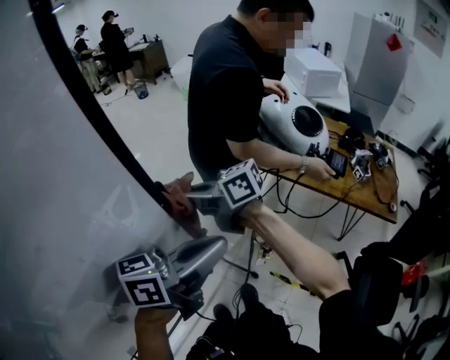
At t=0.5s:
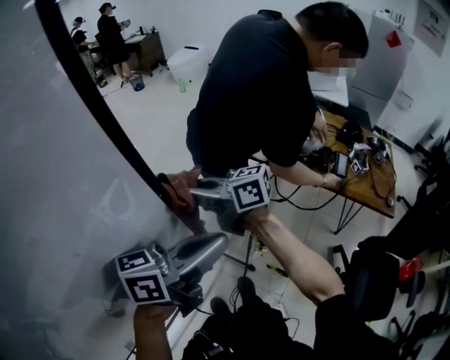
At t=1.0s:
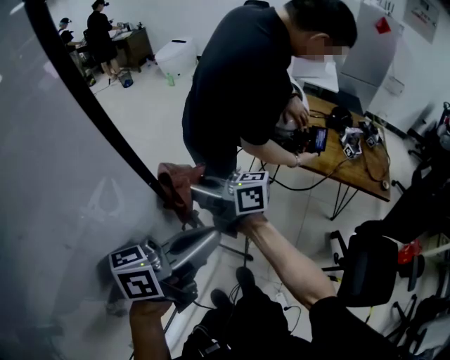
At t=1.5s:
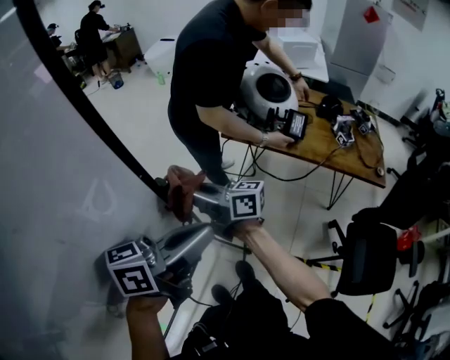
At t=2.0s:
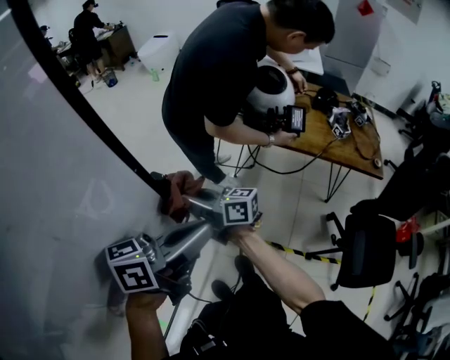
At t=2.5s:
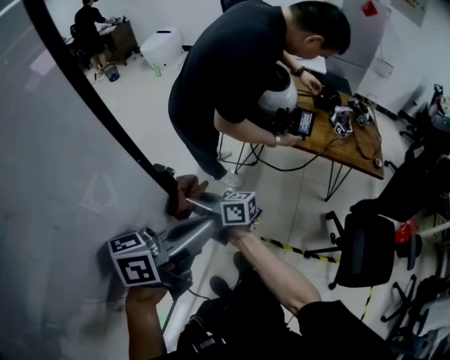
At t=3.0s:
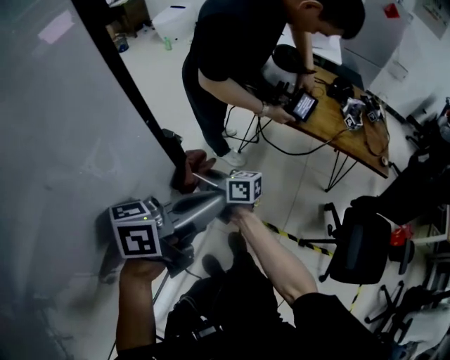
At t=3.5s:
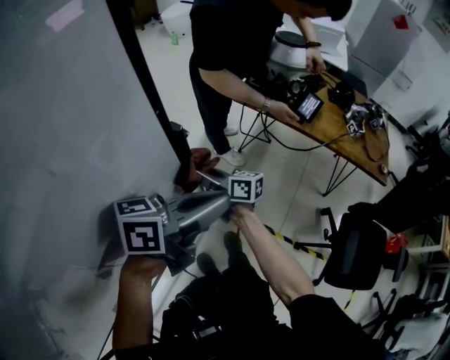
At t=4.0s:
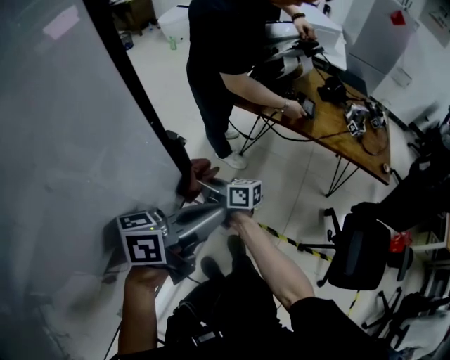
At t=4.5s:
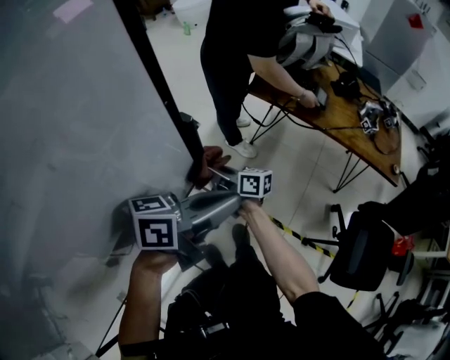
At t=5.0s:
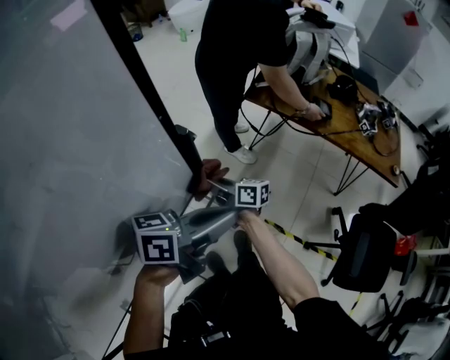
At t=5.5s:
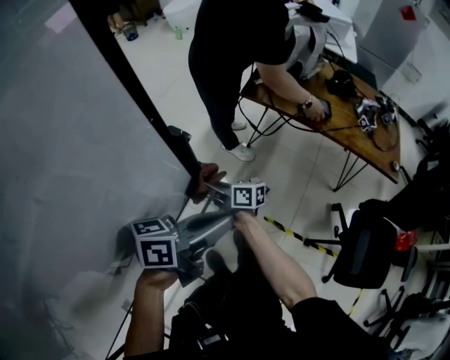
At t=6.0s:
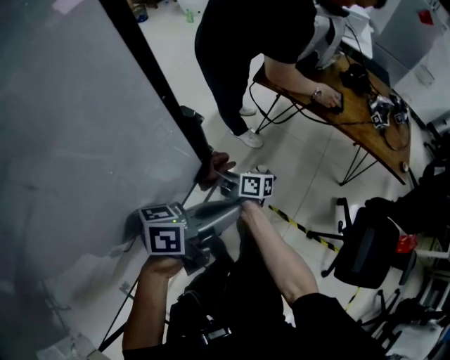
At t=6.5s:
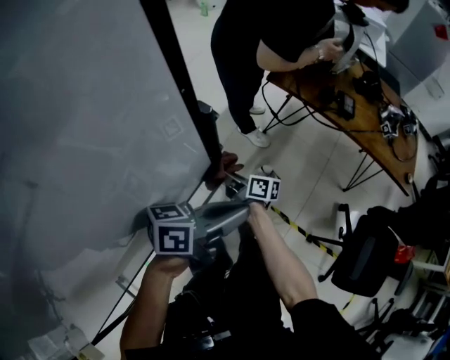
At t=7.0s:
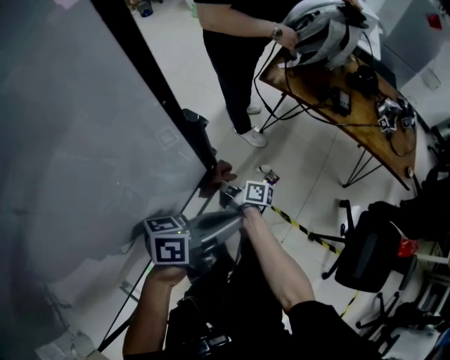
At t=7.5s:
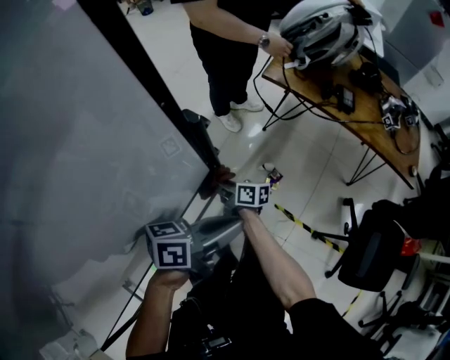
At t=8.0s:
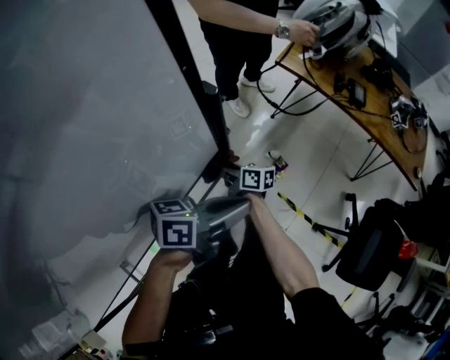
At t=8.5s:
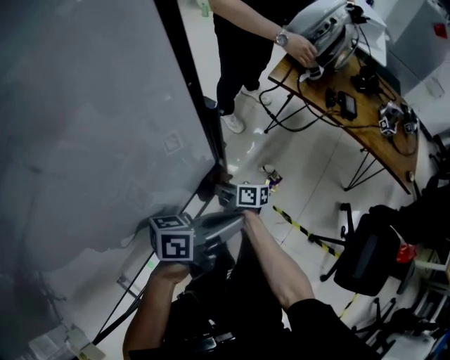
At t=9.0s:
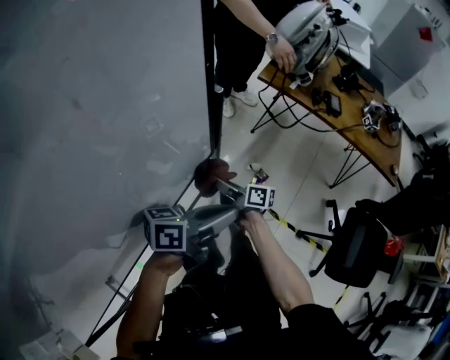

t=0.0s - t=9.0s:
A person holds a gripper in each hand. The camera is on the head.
t=0.0s - t=2.0s: The left gripper goes about 5 cm downward; the right gripper heads downward, covering approximately 15 cm, and changes its angle by roughly 30 degrees.
t=2.0s - t=4.5s: The left gripper travels downward by about 5 cm; the right gripper is displaced downward by about 15 cm.
t=4.5s - t=7.0s: The two grippers go roughly 10 cm downward. The right gripper swivels approximately 30 degrees.
t=7.0s - t=9.0s: The right gripper is displaced backward and upward by roughly 10 cm; the left gripper is displaced backward by roughly 5 cm.

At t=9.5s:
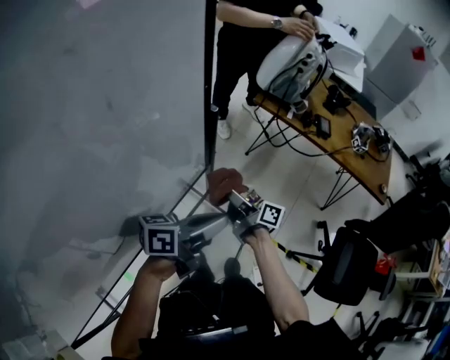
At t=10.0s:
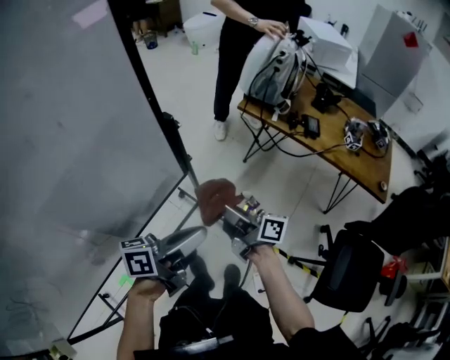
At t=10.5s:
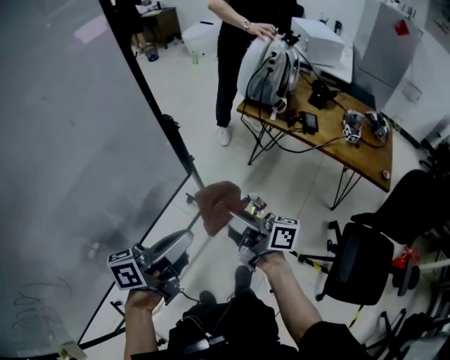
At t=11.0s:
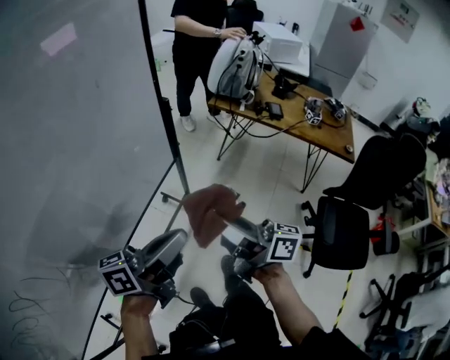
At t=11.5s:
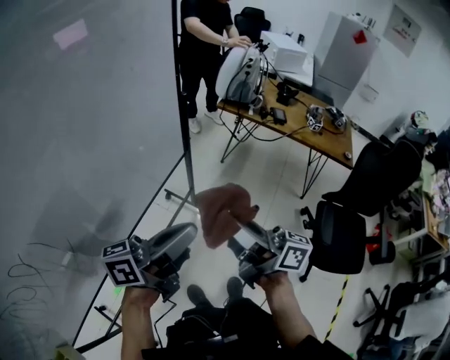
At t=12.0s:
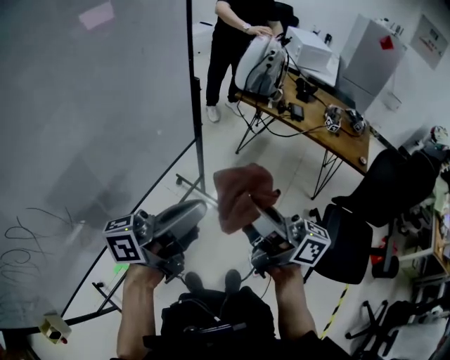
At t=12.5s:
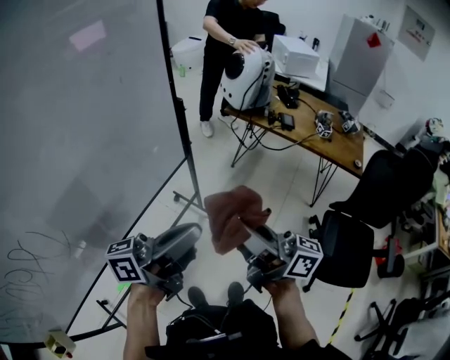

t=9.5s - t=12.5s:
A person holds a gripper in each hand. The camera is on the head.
t=9.5s - t=11.0s: The right gripper moves backward and upward, about 35 cm, and swivels about 20 degrees, while the left gripper goes some 25 cm backward and upward.
t=11.0s - t=12.5s: The right gripper moves to the right, backward and upward, some 10 cm. Meanwhile the left gripper is displaced to the right, upward and backward by approximately 10 cm.

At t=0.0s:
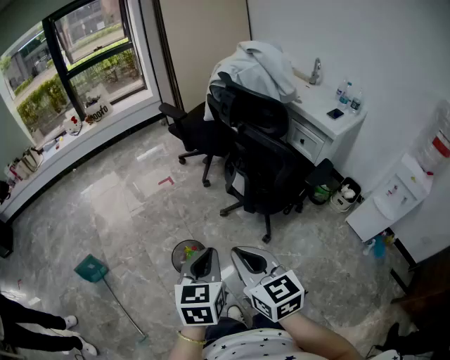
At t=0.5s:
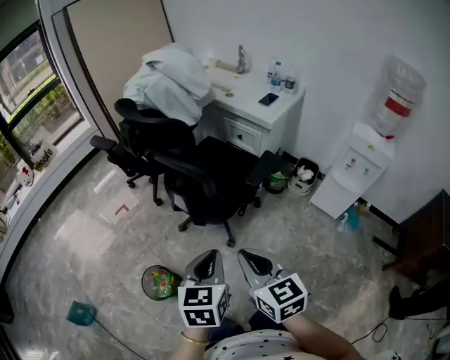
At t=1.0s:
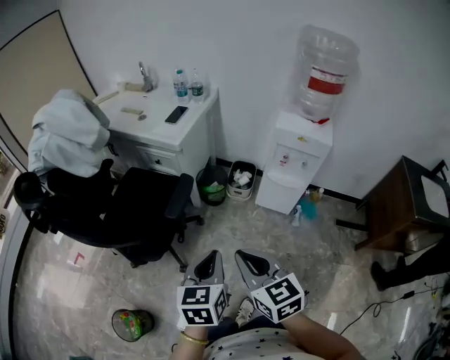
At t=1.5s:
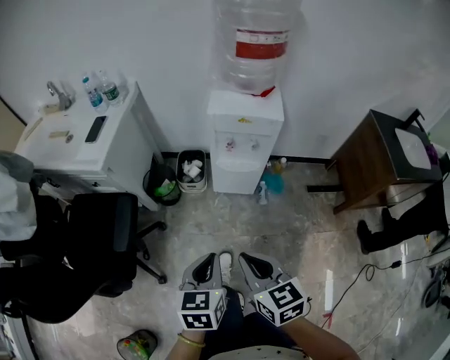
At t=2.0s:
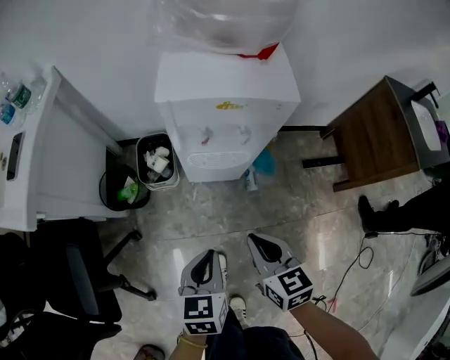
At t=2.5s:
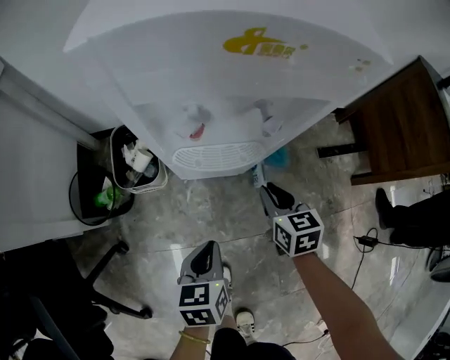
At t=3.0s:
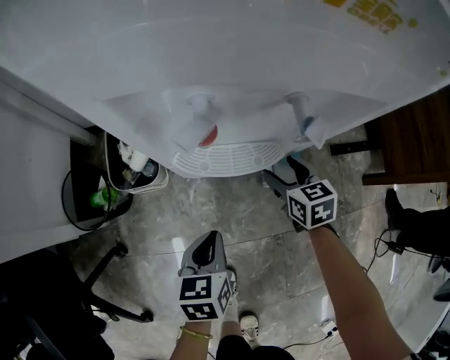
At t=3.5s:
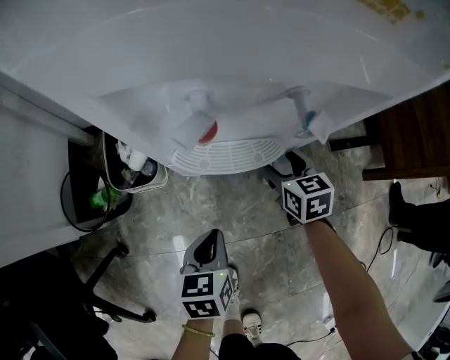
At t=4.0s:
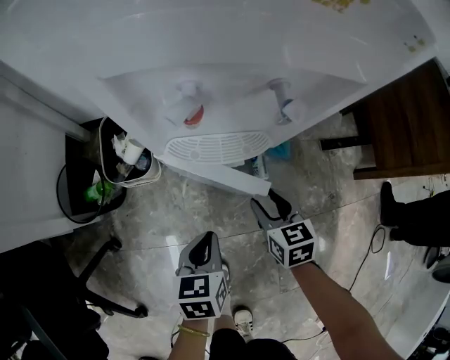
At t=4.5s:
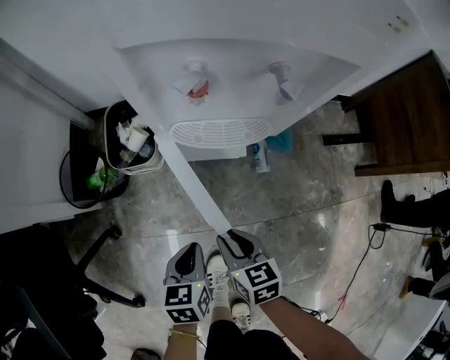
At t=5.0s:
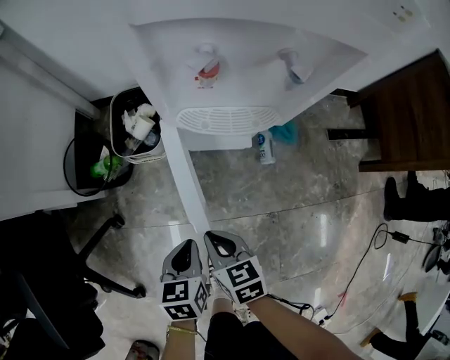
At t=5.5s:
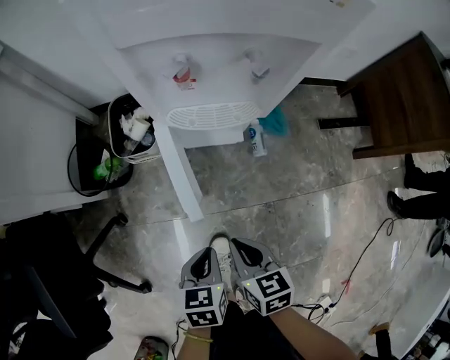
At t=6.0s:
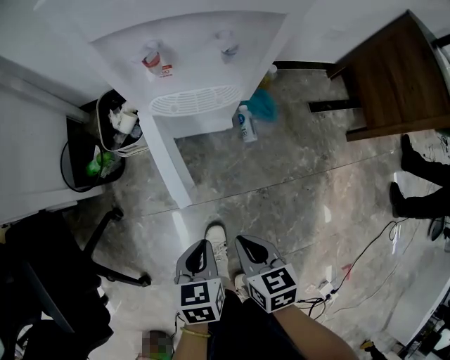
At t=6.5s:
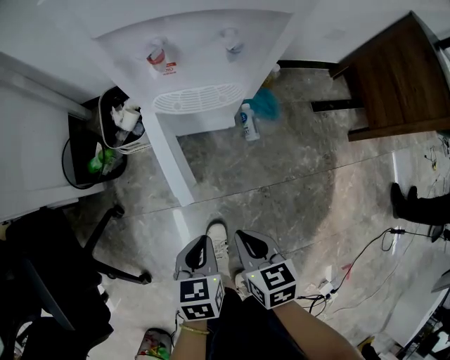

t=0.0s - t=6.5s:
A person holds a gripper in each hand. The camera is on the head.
t=0.0s - t=2.0s: Both grippers are carried roughly 90 cm. The left gripper turns by roughly 60 degrees, while the right gripper turns by approximately 70 degrees.
t=2.0s - t=4.5s: Both grippers move downward, roughly 30 cm. The right gripper opens, then closes again.
t=4.5s - t=6.5s: Both grippers move backward and upward, some 10 cm.

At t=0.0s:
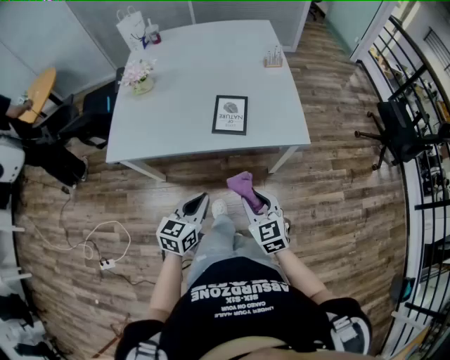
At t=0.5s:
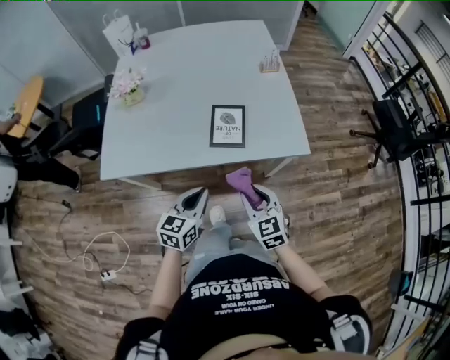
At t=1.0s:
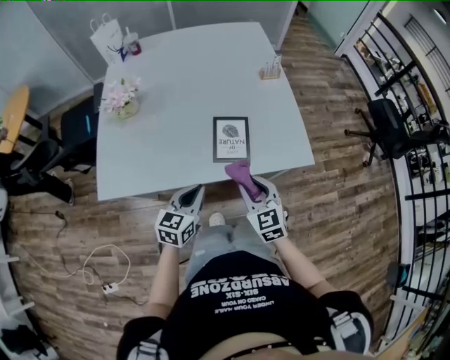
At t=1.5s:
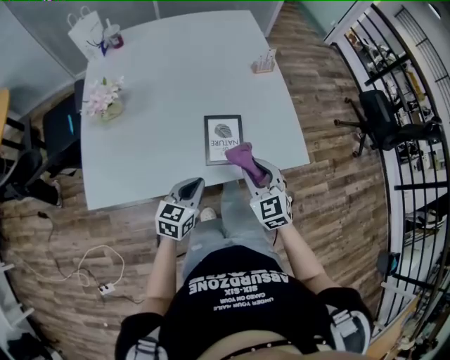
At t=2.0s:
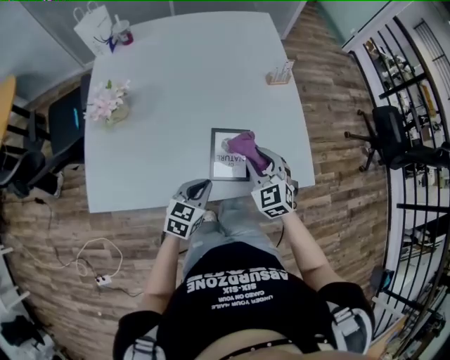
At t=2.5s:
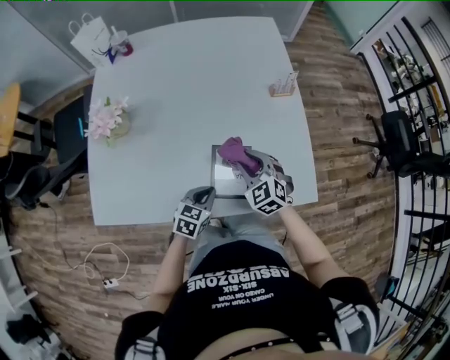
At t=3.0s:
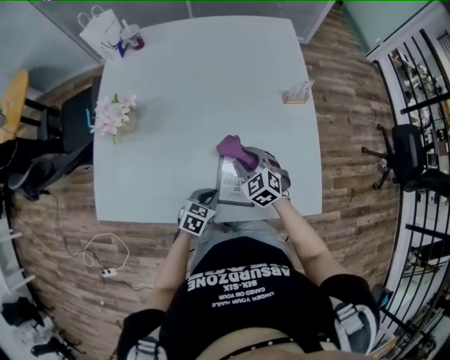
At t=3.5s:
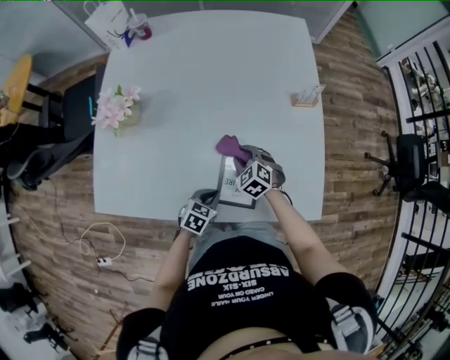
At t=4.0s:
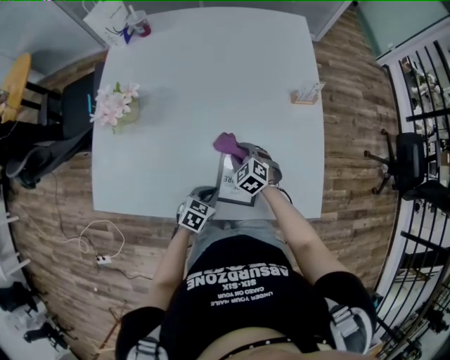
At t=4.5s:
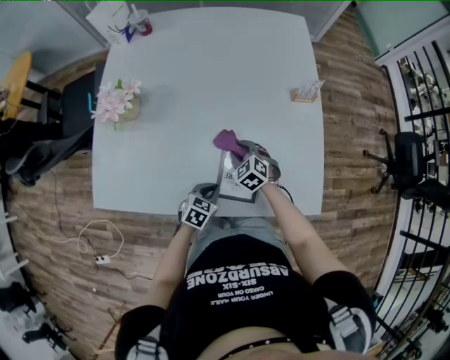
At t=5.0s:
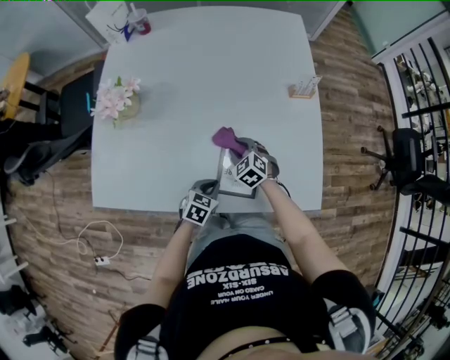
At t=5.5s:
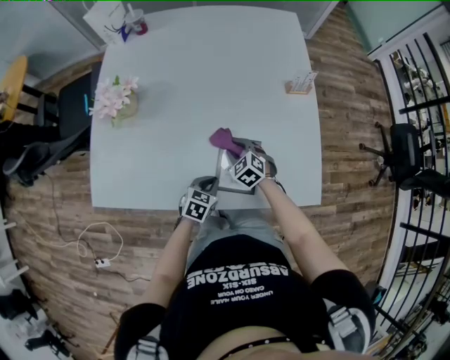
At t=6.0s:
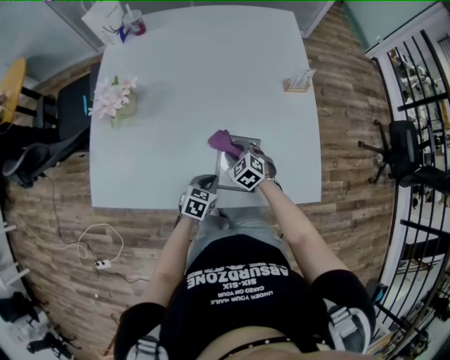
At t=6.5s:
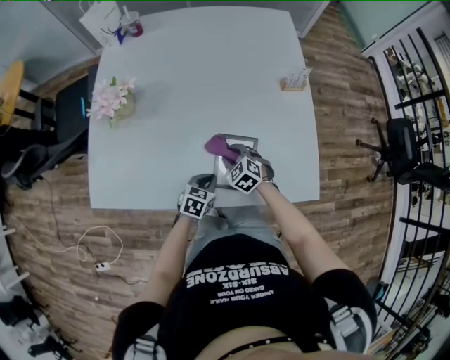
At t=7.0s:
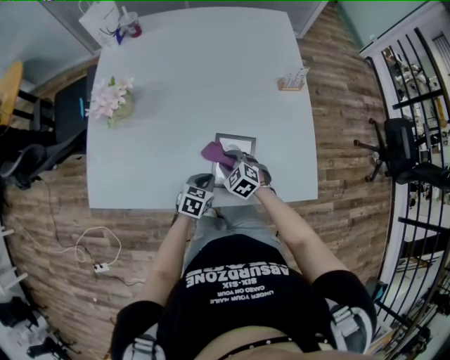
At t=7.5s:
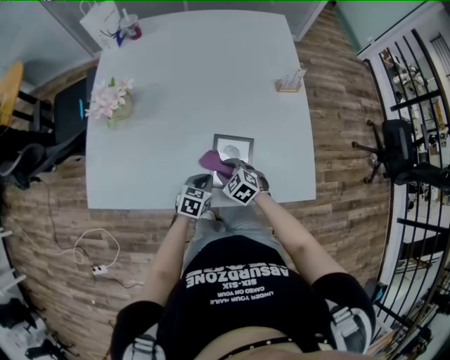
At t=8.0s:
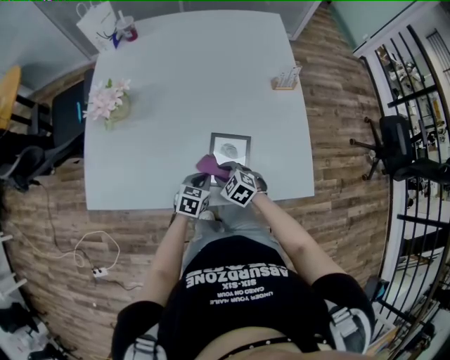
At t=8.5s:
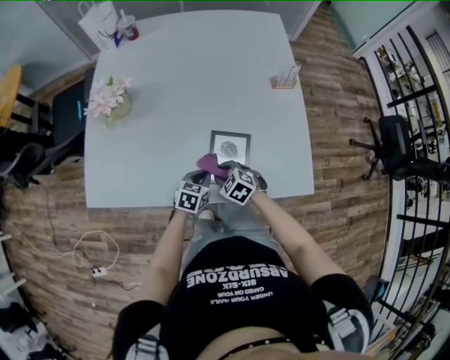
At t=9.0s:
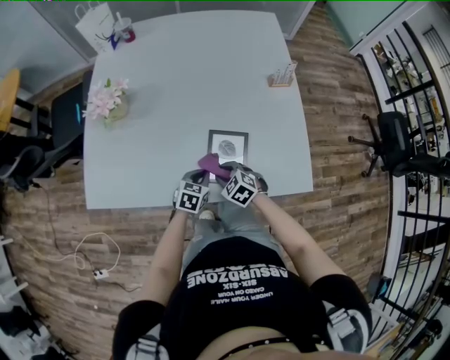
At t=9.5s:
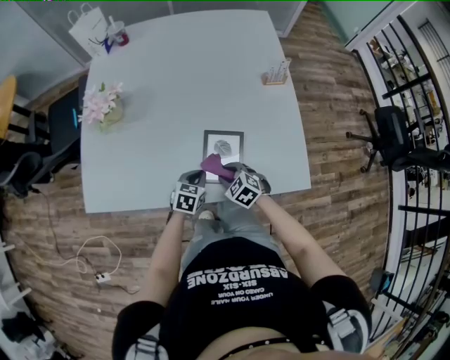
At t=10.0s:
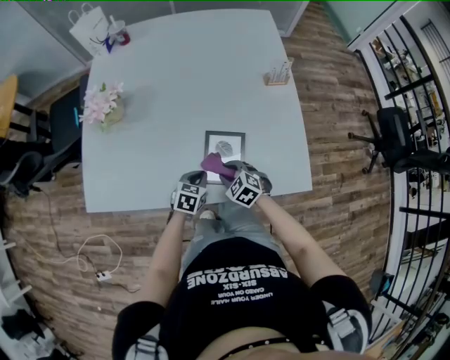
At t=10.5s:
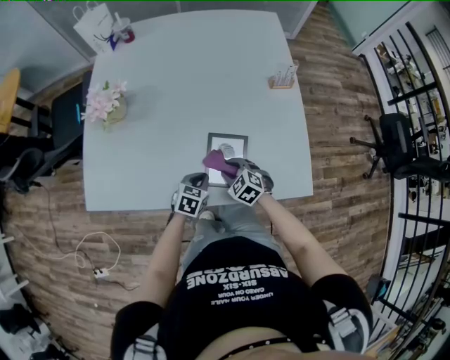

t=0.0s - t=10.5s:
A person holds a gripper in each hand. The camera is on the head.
t=0.0s - t=2.0s: Both grippers move forward, approximately 30 cm.
t=2.0s - t=4.0s: The right gripper goes about 20 cm downward, forward and to the left, and turns by some 30 degrees, while the left gripper moves downward, about 10 cm.
t=4.0s - t=6.5s: The right gripper travels backward by approximately 5 cm.
t=6.5s - t=8.5s: The right gripper travels backward by roughly 10 cm.
t=8.5s - t=10.5s: The grippers make only small movements.
